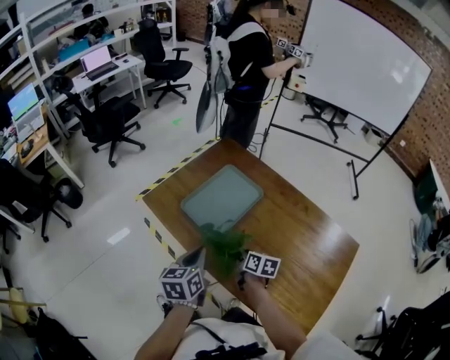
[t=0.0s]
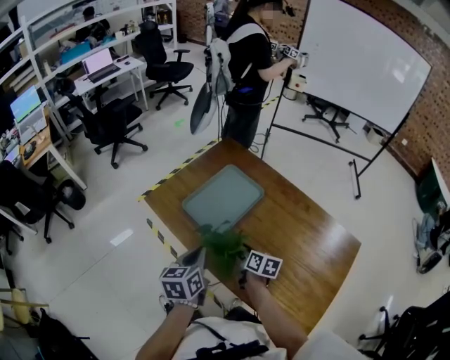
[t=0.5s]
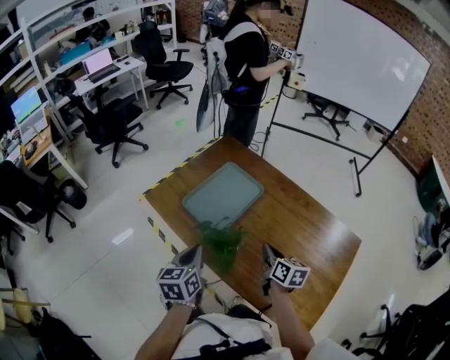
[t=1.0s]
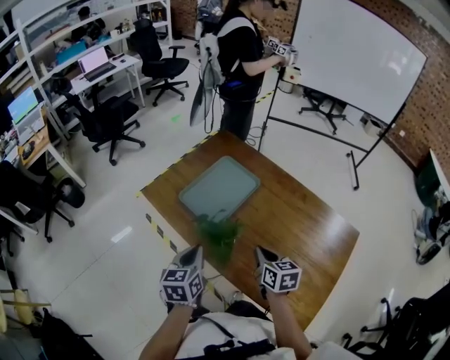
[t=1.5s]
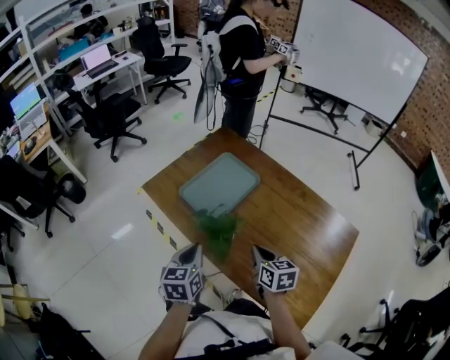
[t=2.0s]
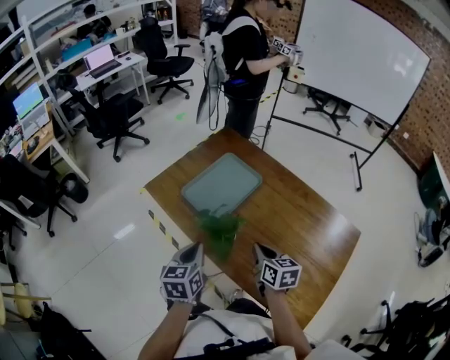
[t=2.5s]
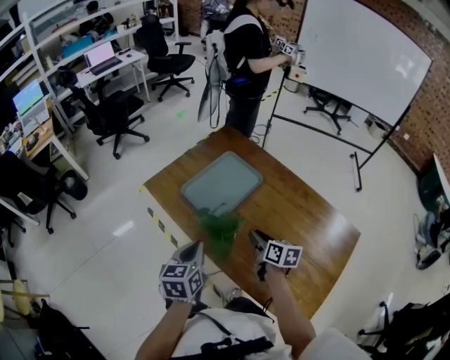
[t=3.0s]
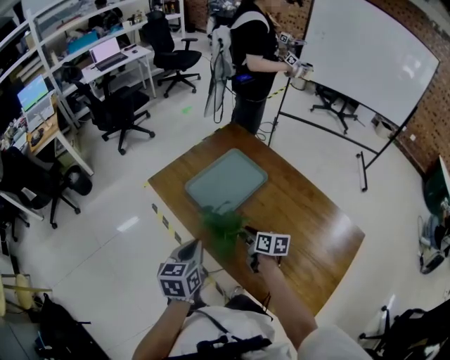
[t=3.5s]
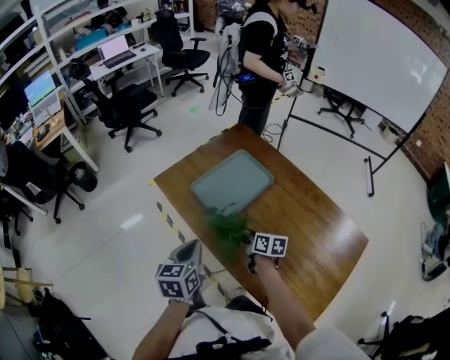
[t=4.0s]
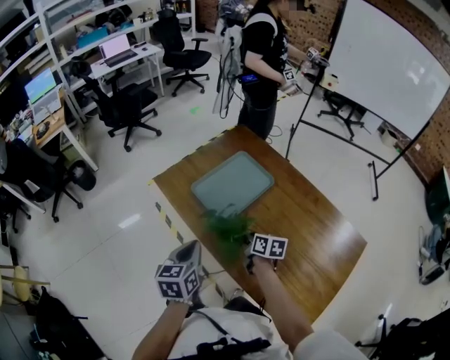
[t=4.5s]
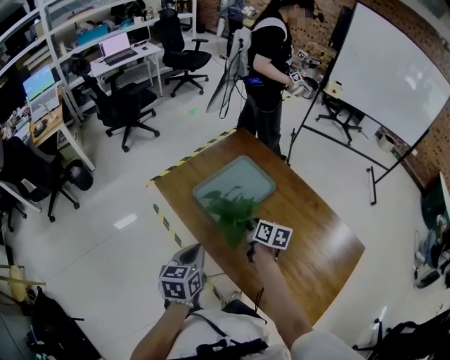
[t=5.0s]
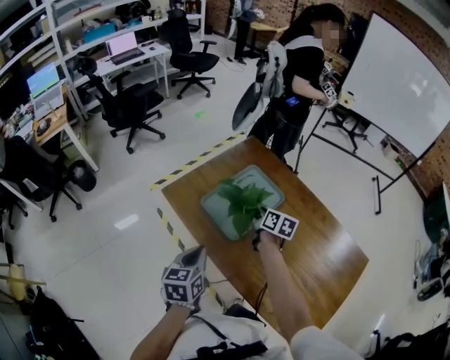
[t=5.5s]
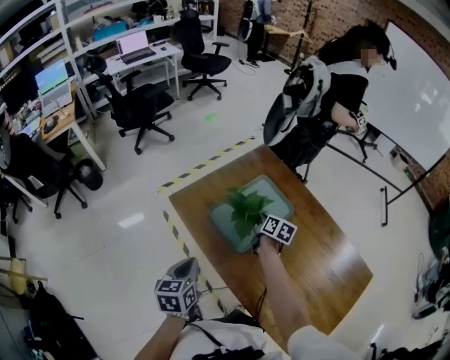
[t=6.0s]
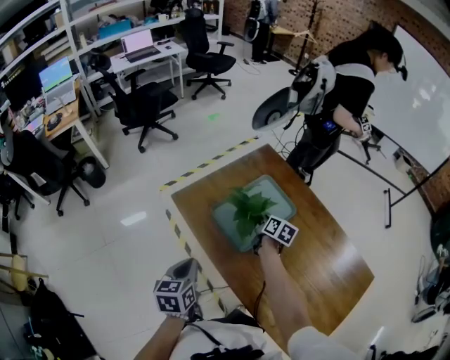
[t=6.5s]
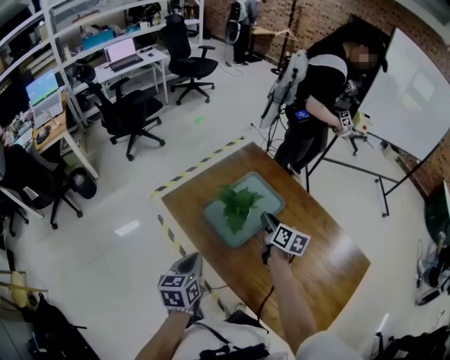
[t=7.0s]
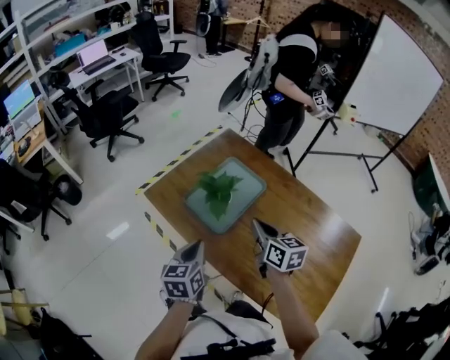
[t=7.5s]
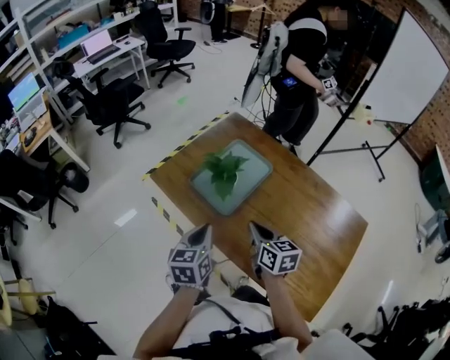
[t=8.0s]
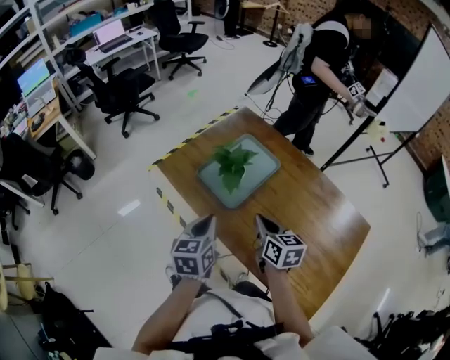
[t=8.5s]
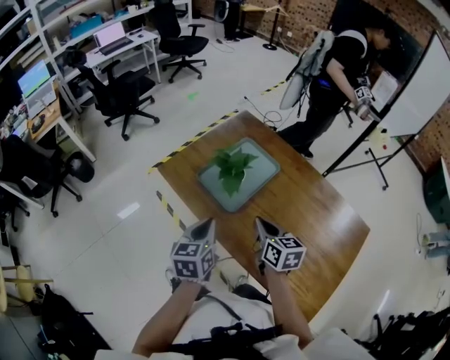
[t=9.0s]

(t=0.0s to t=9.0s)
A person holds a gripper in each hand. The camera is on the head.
t=0.0s - t=2.0s: The right gripper travels upward and backward by about 10 cm, and changes its angle by about 20 degrees.
t=2.0s - t=4.5s: The right gripper goes some 15 cm forward and downward, and opens and closes again.
t=4.5s - t=7.0s: The left gripper moves forward, approximately 5 cm; the right gripper heads forward and upward, covering approximately 15 cm.
t=7.0s - t=9.0s: The right gripper moves backward, approximately 15 cm, and closes up. Meanwhile the left gripper goes approximately 5 cm to the right.

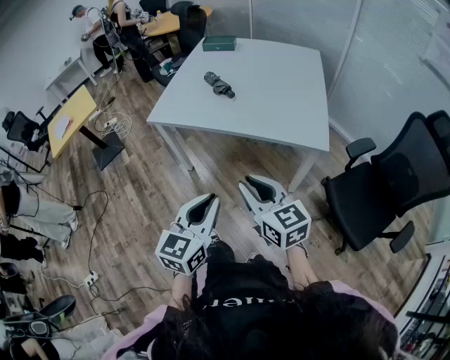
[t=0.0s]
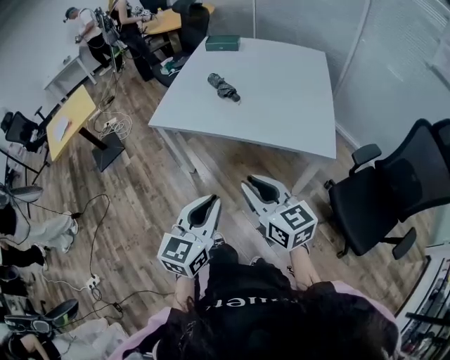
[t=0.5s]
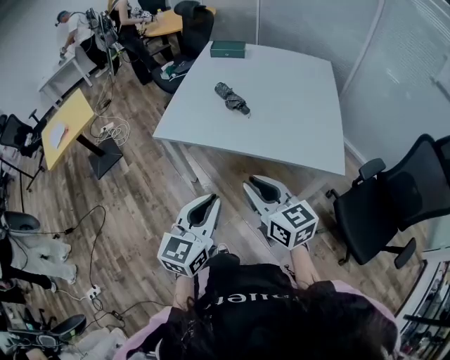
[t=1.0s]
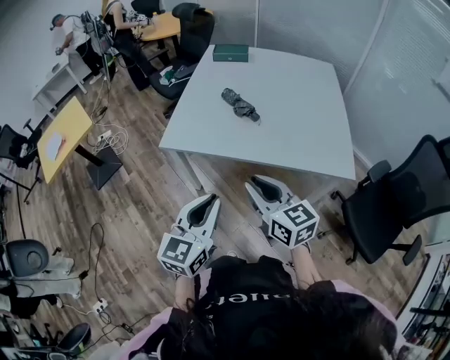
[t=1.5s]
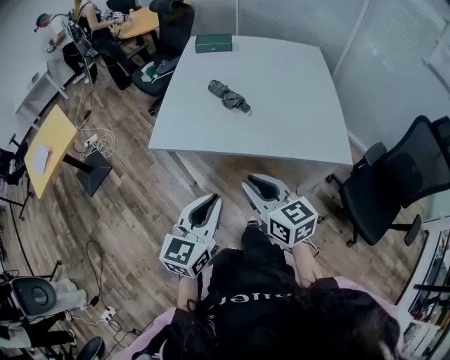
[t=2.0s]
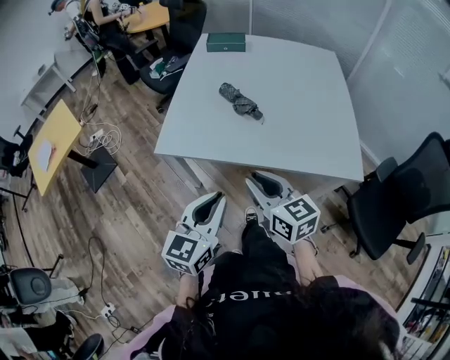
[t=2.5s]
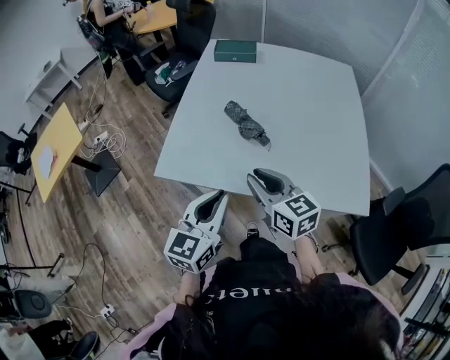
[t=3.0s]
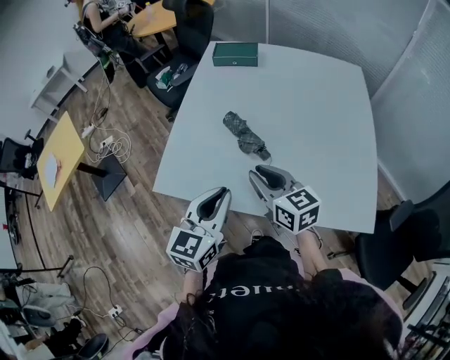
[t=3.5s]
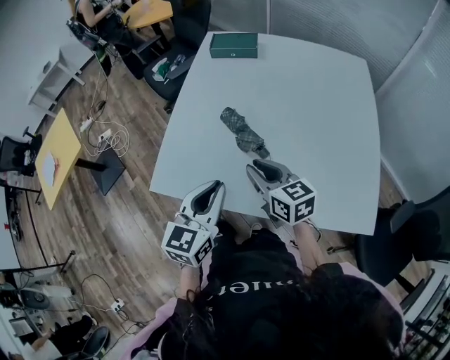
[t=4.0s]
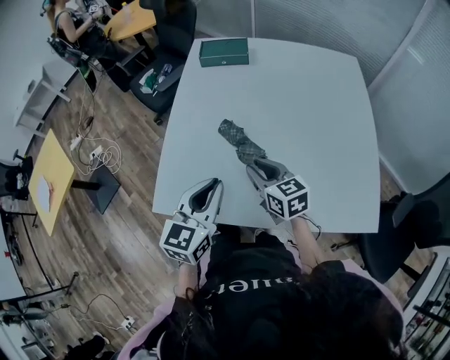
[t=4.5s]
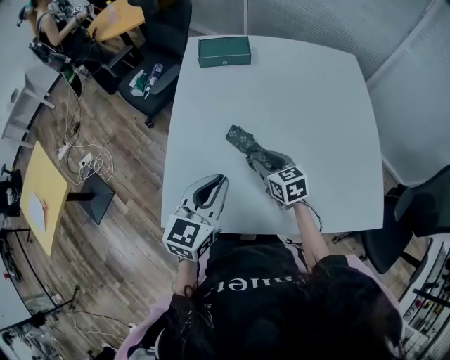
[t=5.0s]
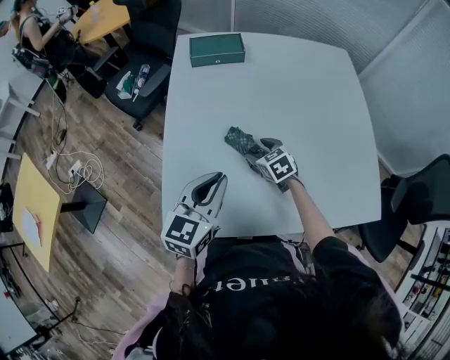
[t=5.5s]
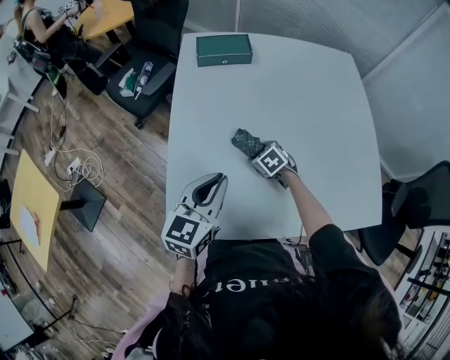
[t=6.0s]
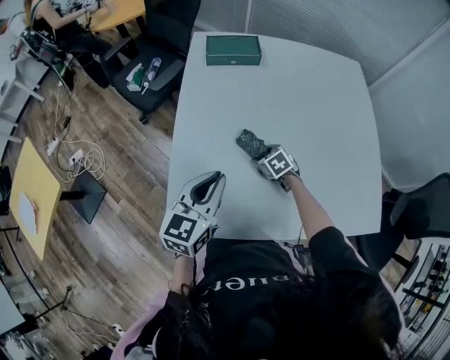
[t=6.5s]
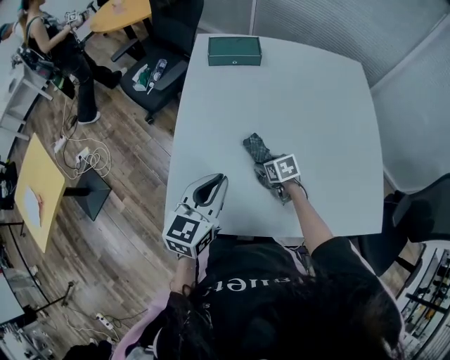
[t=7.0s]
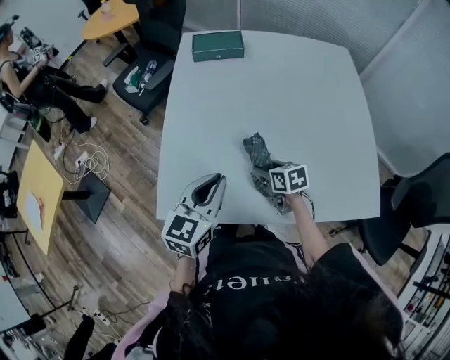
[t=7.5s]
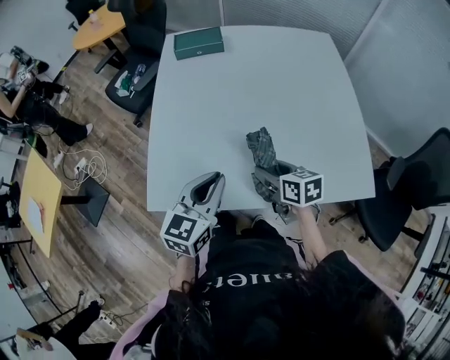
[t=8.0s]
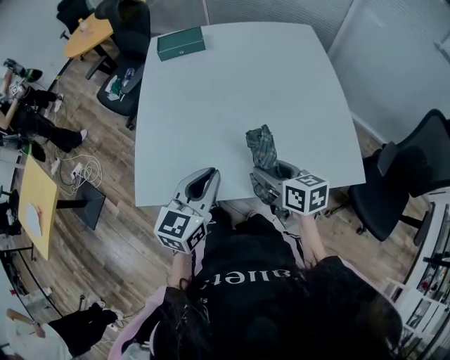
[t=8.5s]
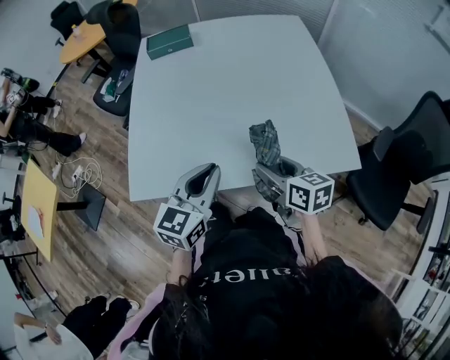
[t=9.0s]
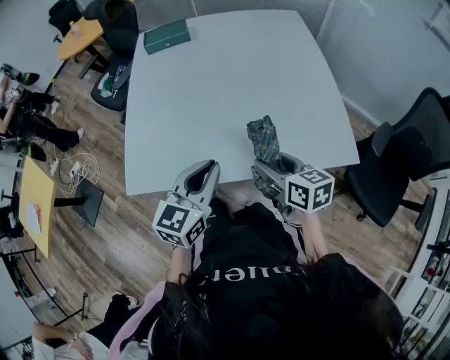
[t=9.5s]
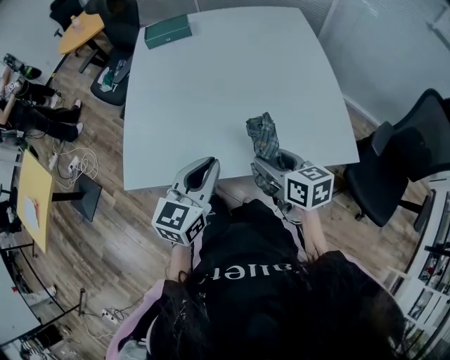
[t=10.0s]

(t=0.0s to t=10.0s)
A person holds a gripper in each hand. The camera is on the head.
t=0.0s - t=2.0s: Both grippers travel together forward and to the left, approximately 25 cm.
t=2.0s - t=4.0s: The grippers both shift forward by some 30 cm.
t=4.0s - t=6.0s: The right gripper is displaced downward and forward by approximately 30 cm, tilts its fingers some 50 degrees downward, and opens up, while the left gripper shifts approximately 20 cm forward and to the left.
t=6.0s - t=8.0s: The right gripper moves backward, upward and to the right, about 25 cm, and tips its fingers upward by some 30 degrees. The left gripper travels backward and to the right by roughly 15 cm.
t=8.0s - t=10.0s: The grippers both shift to the right and backward by some 15 cm.

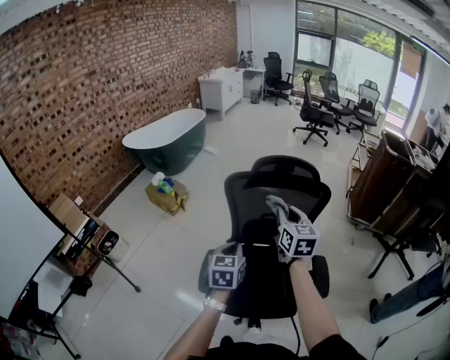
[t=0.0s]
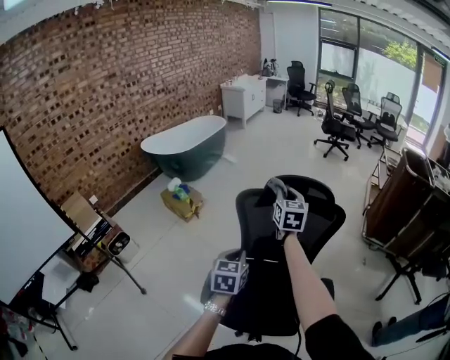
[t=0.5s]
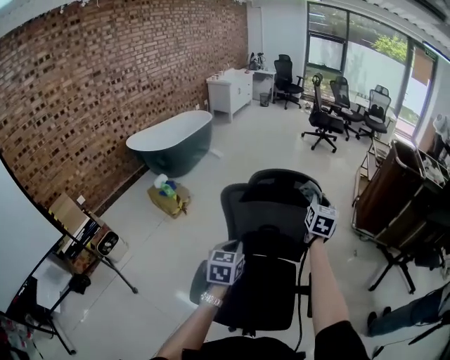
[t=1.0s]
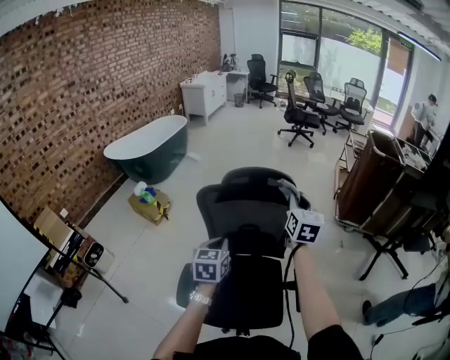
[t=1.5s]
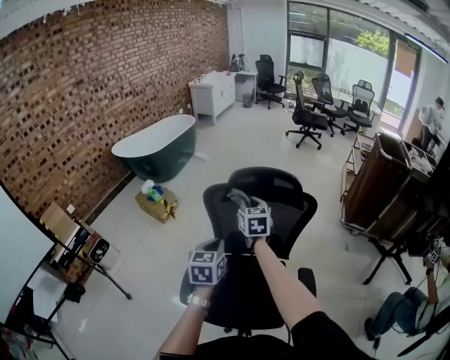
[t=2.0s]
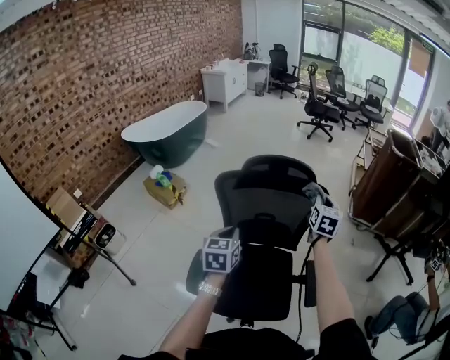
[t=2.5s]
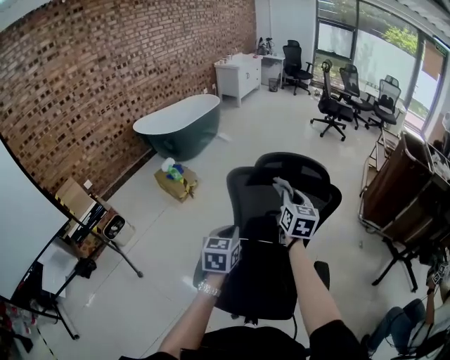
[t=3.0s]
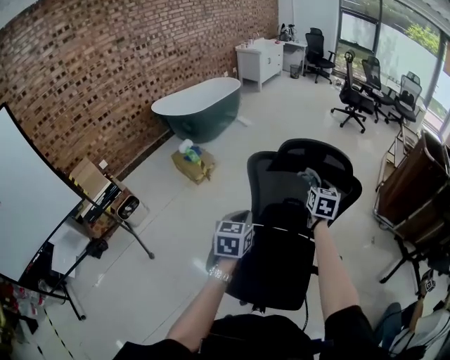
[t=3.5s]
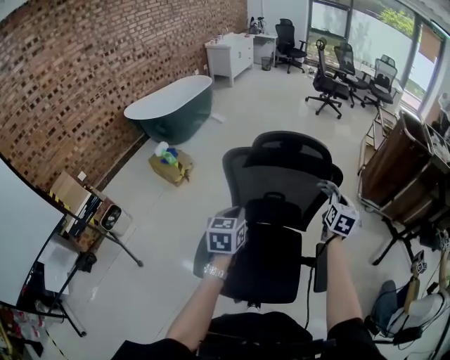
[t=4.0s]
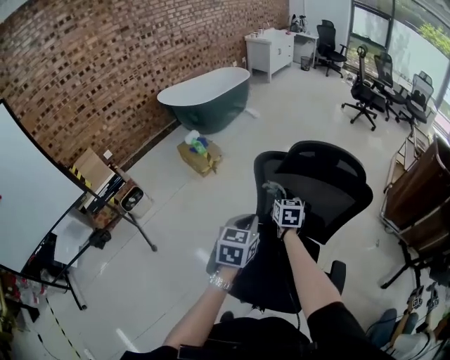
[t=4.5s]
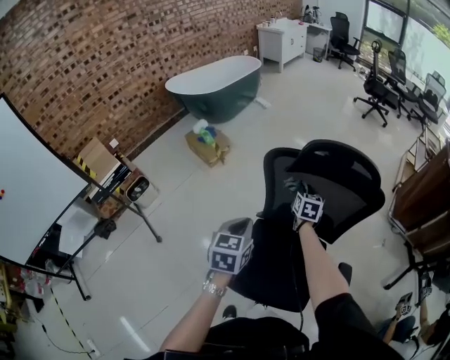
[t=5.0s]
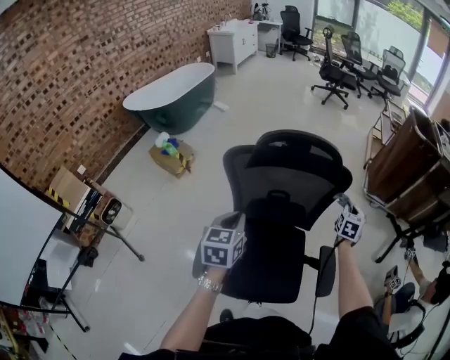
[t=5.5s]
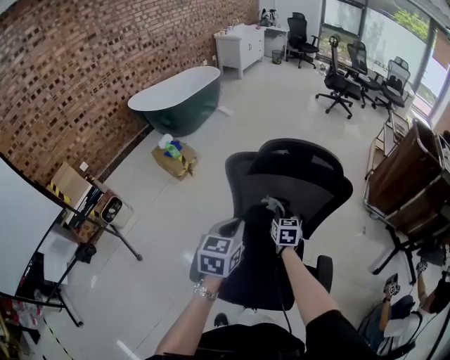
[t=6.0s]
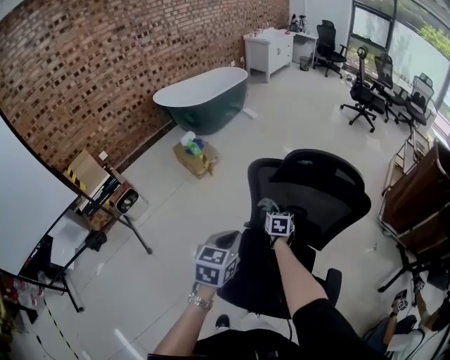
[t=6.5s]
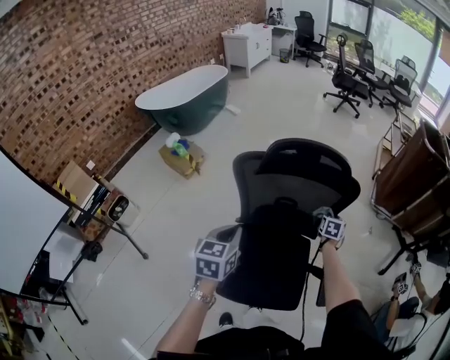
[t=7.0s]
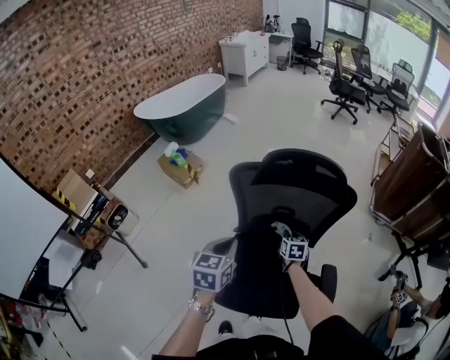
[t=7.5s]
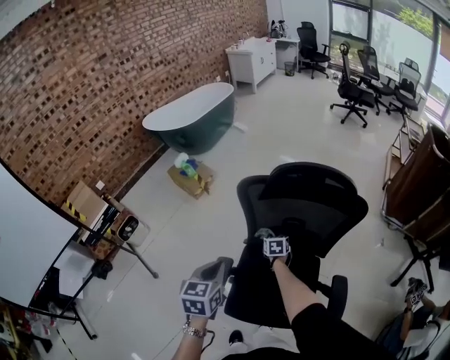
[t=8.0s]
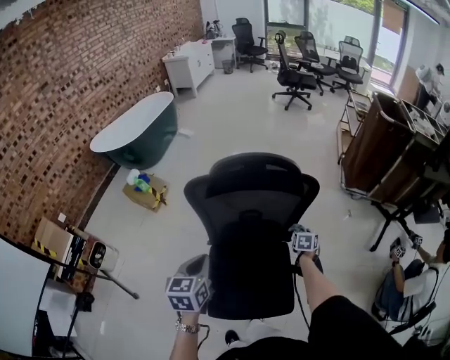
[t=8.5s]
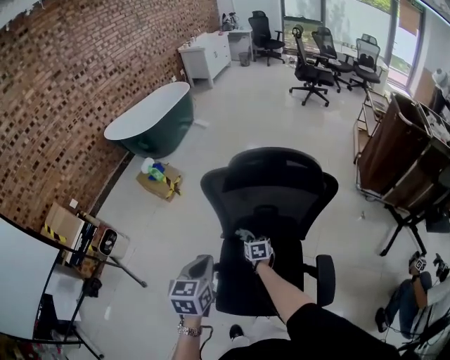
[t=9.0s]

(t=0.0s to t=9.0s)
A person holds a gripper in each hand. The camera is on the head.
t=0.0s - t=2.0s: The left gripper travels forward by some 5 cm. The right gripper goes approximately 15 cm forward and downward, and moves roughly 15 cm to the right and comes back.
t=2.0s - t=4.5s: The right gripper goes left and right, about 30 cm each way, reversing 3 times.
t=4.5s - t=7.0s: The right gripper moves left and right over roughly 40 cm, changing direction 2 times, and changes its angle by roughly 30 degrees. The left gripper swings left and right, roughly 10 cm each way, with 2 reversals.
t=7.0s - t=9.0s: The right gripper moves left and right over about 35 cm, changing direction 2 times, and swivels some 30 degrees.
